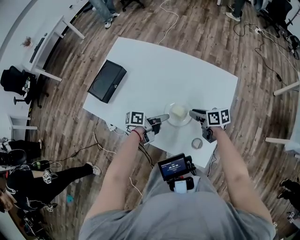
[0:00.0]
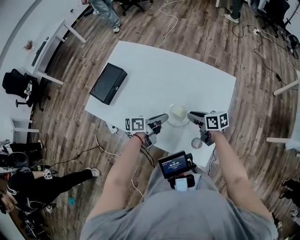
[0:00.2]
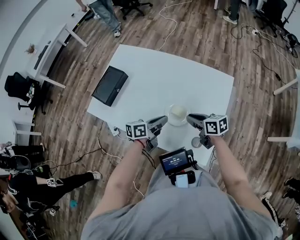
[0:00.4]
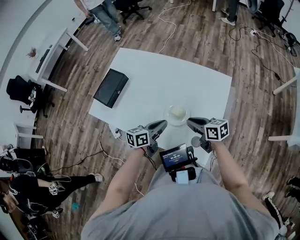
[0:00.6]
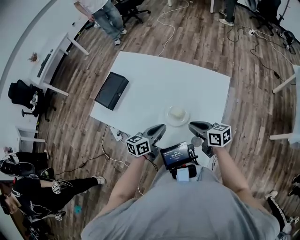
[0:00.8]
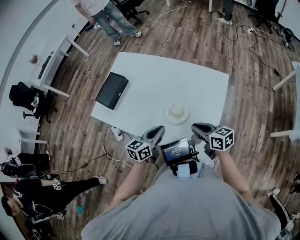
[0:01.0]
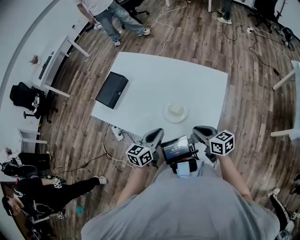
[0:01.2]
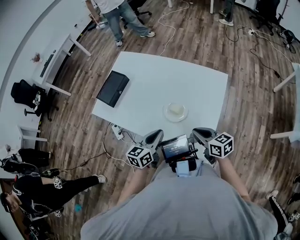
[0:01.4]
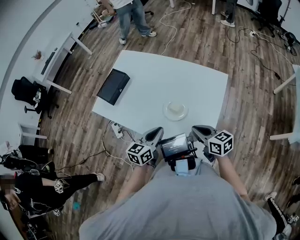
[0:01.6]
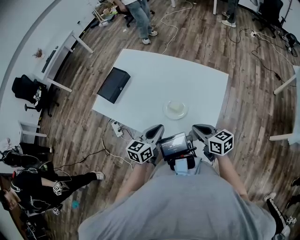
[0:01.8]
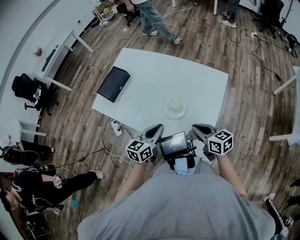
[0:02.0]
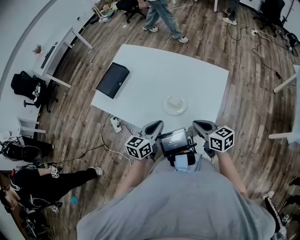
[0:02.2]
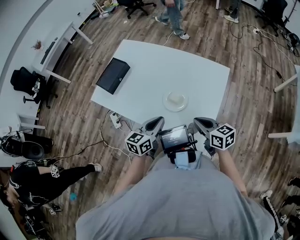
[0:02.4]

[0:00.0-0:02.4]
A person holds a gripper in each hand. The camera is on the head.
0:00.0 to 0:01.2: The right gripper shifts by roughly 15 cm, and swivels about 20 degrees.

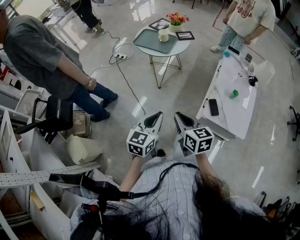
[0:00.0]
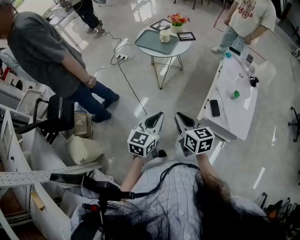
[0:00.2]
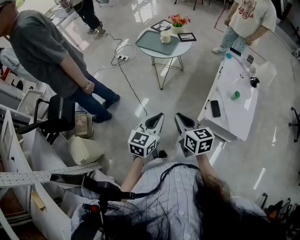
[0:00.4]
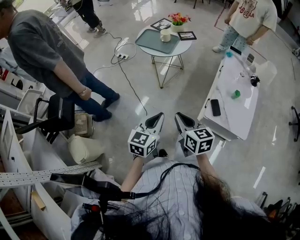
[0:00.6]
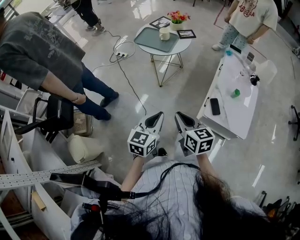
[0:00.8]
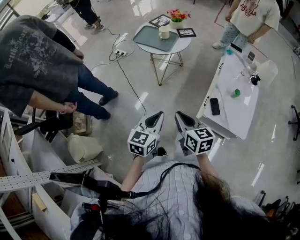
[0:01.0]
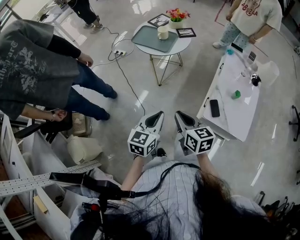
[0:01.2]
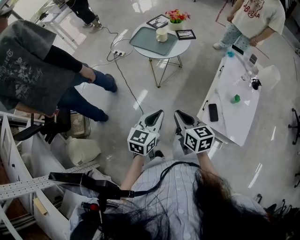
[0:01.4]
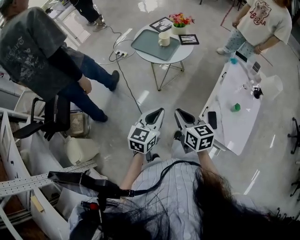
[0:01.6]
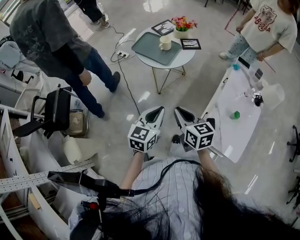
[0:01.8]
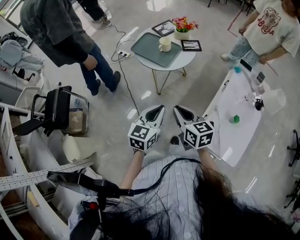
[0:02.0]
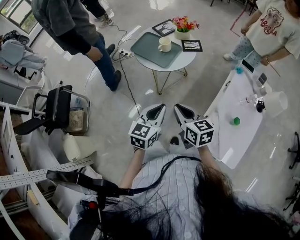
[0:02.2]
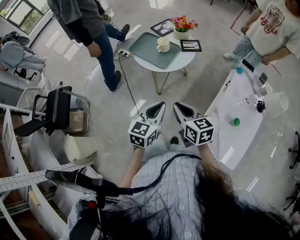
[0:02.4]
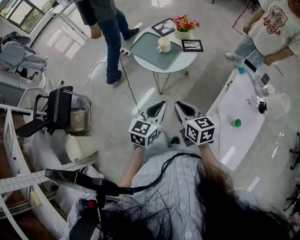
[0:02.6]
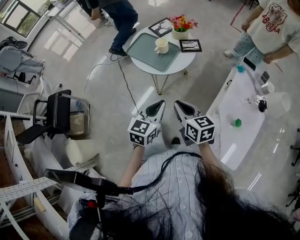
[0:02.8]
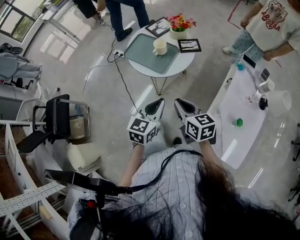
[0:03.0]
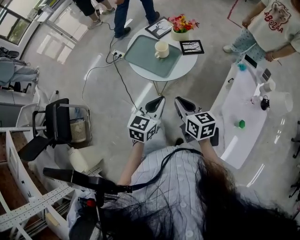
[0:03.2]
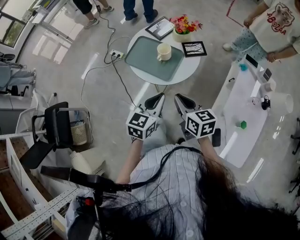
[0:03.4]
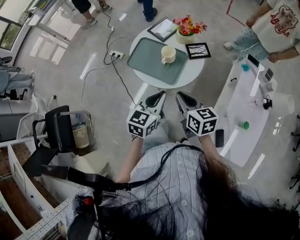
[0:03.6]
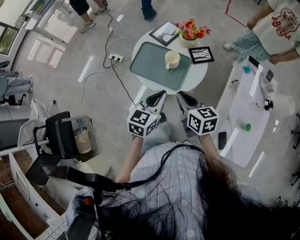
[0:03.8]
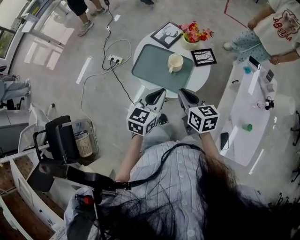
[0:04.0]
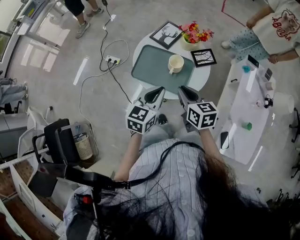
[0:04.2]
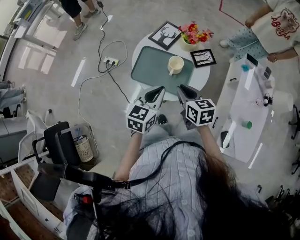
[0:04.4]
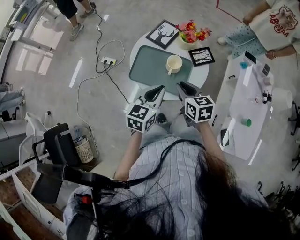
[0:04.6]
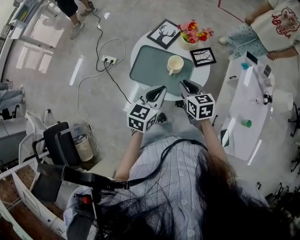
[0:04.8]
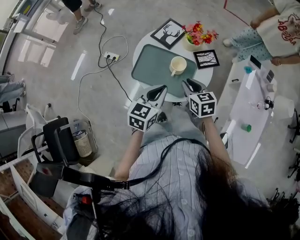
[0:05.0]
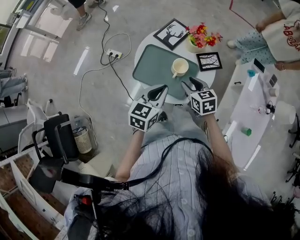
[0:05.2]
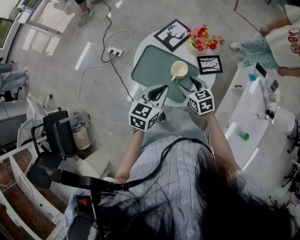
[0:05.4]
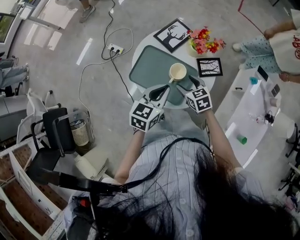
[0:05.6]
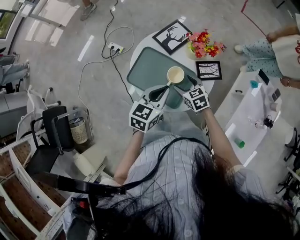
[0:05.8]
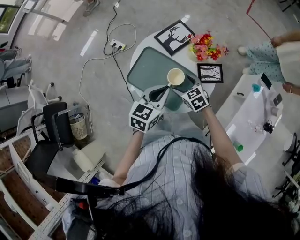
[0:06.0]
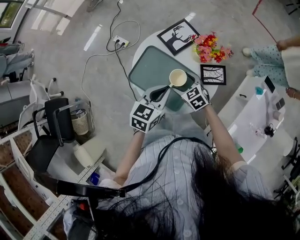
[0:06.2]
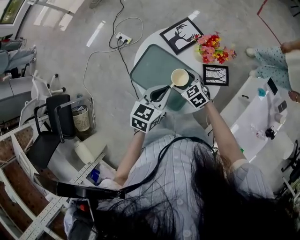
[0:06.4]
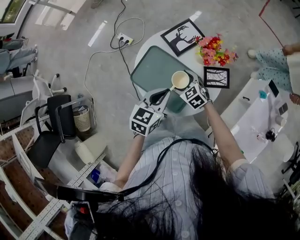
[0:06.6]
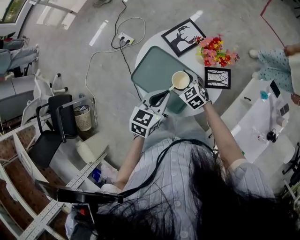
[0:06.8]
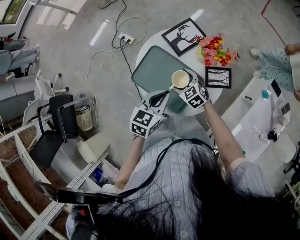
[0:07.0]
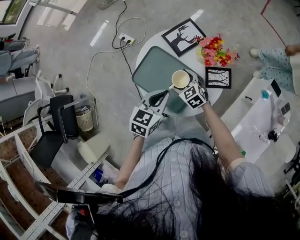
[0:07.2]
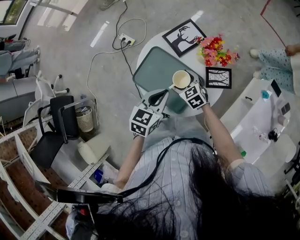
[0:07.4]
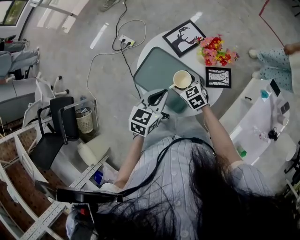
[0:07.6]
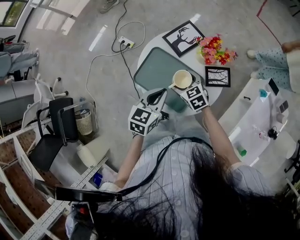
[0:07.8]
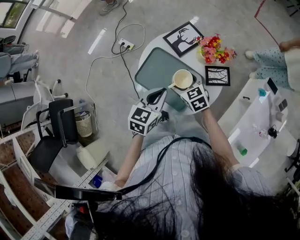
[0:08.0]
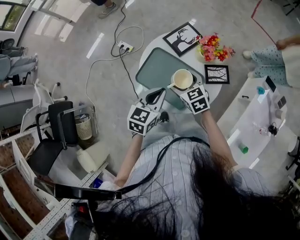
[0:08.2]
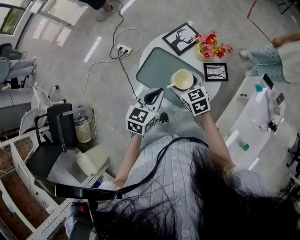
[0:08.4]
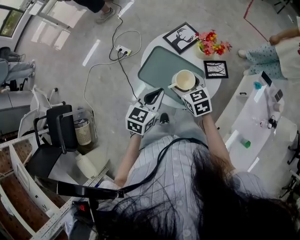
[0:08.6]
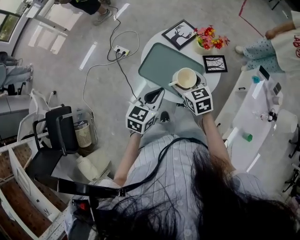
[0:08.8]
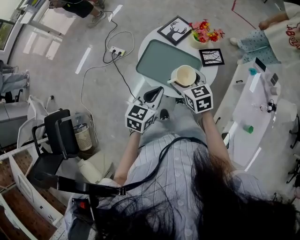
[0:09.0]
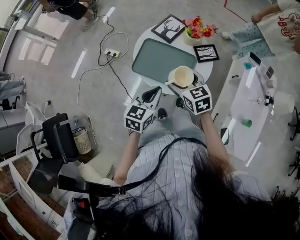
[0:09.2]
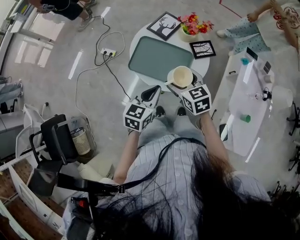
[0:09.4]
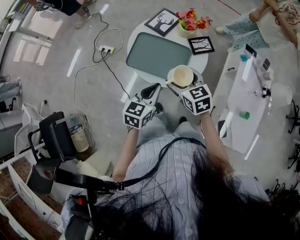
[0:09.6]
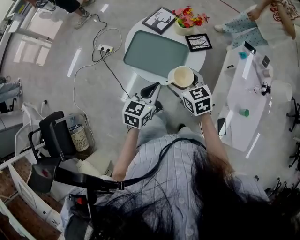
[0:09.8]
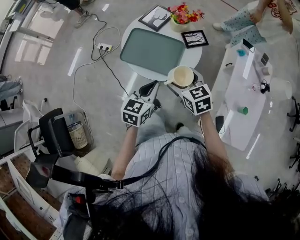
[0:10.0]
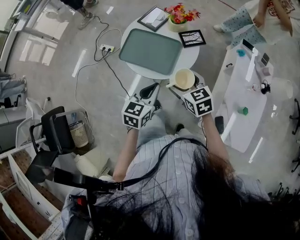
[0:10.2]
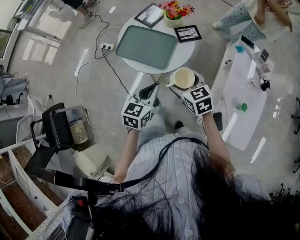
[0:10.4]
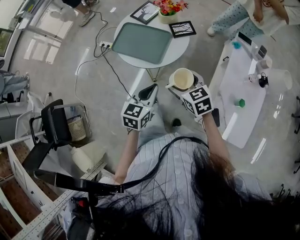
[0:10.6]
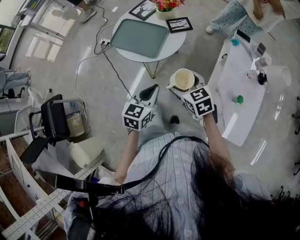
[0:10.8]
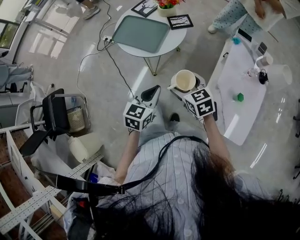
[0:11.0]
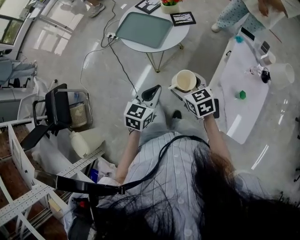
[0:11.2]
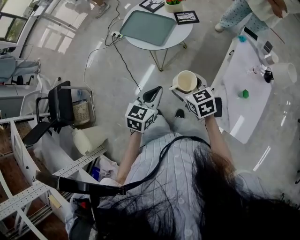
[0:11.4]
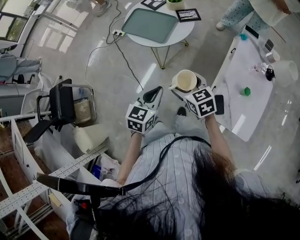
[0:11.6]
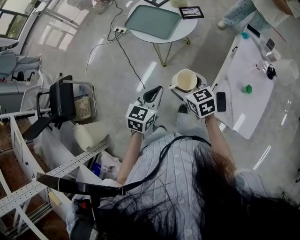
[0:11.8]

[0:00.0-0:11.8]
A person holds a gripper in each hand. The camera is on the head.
0:00.0 to 0:01.4: Both grippers move forward, about 10 cm.
0:01.4 to 0:03.0: Both grippers travel together forward, approximately 25 cm.
0:03.0 to 0:04.4: The grippers both shift forward and to the left by about 25 cm.
0:04.4 to 0:06.0: The left gripper shifts some 10 cm forward and to the right. The right gripper heads downward and forward, covering roughly 20 cm, swivels approximately 40 degrees, and opens its fingers.
0:06.0 to 0:07.4: The right gripper changes place by about 5 cm.
0:07.4 to 0:08.8: The right gripper shifts about 15 cm upward and backward, and rotates some 20 degrees. The left gripper heads backward and to the left, covering roughly 10 cm.
0:08.8 to 0:10.4: The two grippers go about 20 cm backward and to the right.
0:10.4 to 0:11.8: Both grippers move backward, roughly 20 cm.

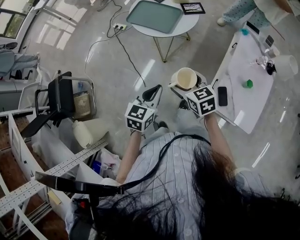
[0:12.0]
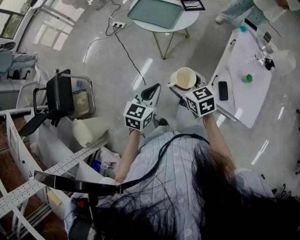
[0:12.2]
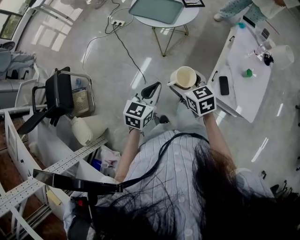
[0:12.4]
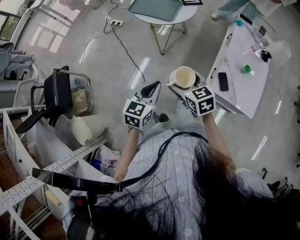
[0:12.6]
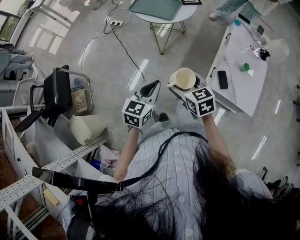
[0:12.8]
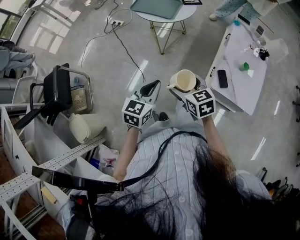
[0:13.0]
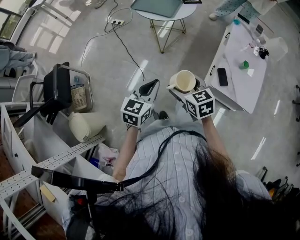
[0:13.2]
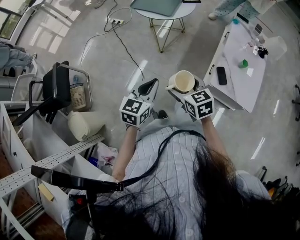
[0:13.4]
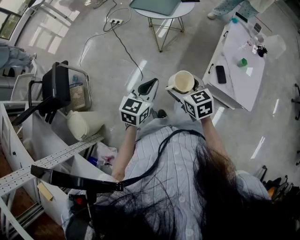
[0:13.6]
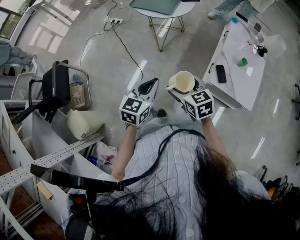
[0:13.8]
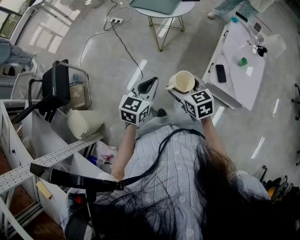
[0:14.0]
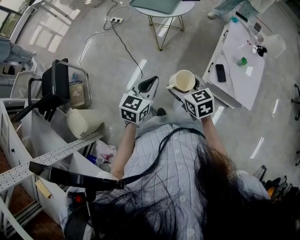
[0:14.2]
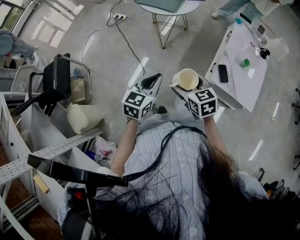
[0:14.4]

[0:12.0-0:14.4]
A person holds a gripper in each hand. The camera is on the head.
0:12.0 to 0:13.2: The left gripper shifts some 15 cm backward and to the left. Meanwhile the right gripper heads backward, covering about 15 cm.
0:13.2 to 0:14.4: The grippers stay close to where they were, moving slightly.

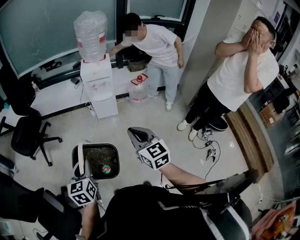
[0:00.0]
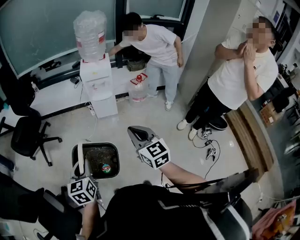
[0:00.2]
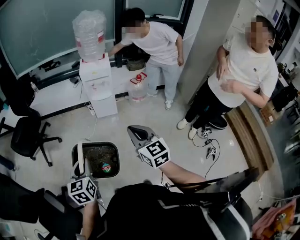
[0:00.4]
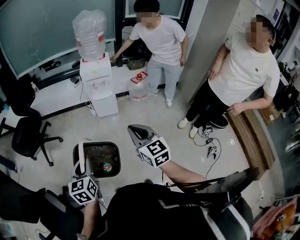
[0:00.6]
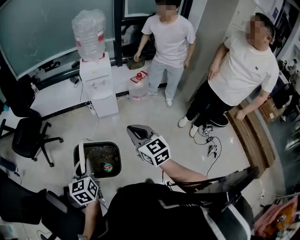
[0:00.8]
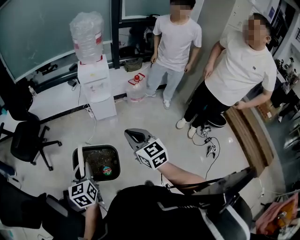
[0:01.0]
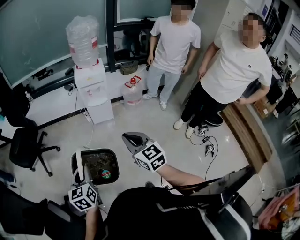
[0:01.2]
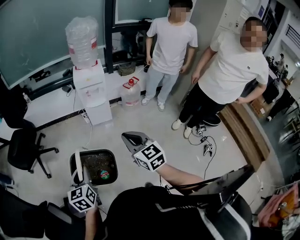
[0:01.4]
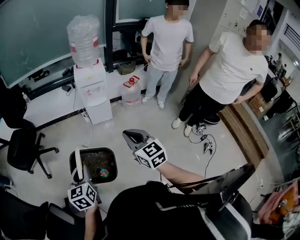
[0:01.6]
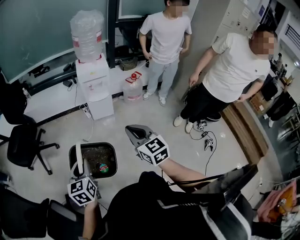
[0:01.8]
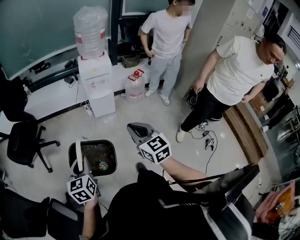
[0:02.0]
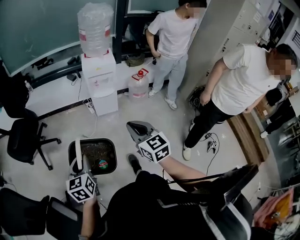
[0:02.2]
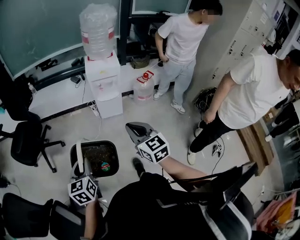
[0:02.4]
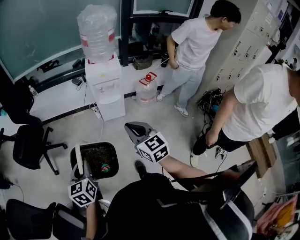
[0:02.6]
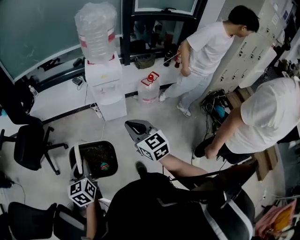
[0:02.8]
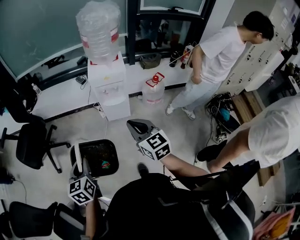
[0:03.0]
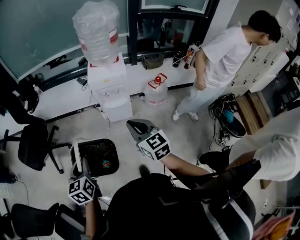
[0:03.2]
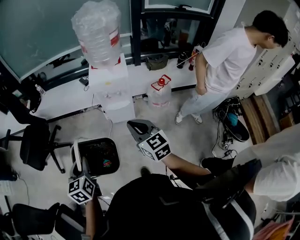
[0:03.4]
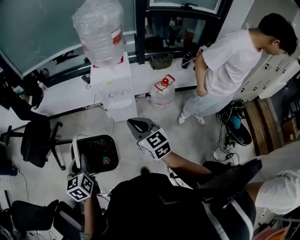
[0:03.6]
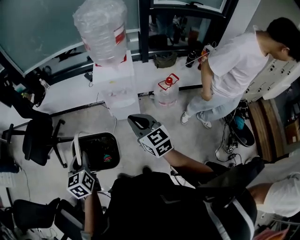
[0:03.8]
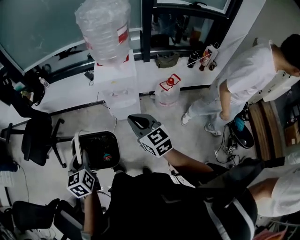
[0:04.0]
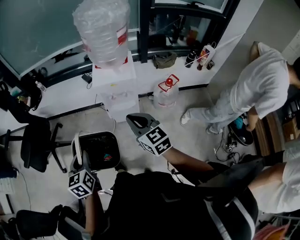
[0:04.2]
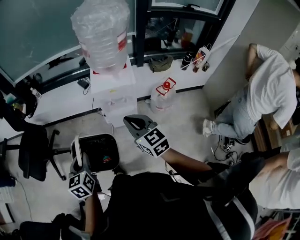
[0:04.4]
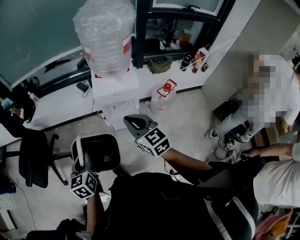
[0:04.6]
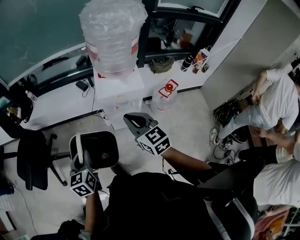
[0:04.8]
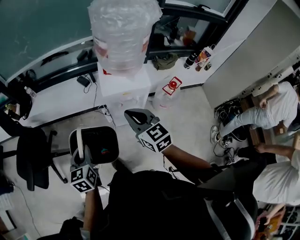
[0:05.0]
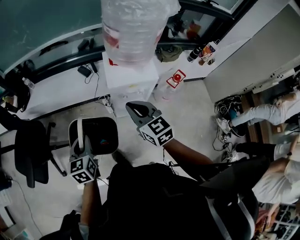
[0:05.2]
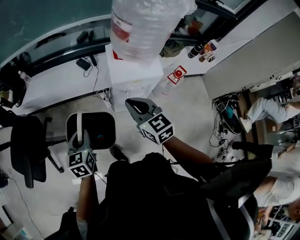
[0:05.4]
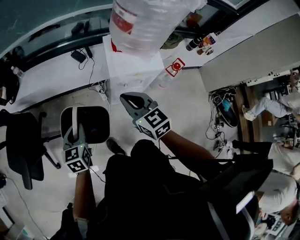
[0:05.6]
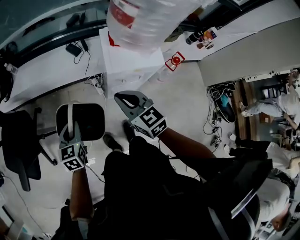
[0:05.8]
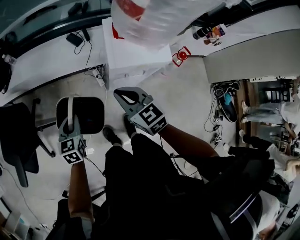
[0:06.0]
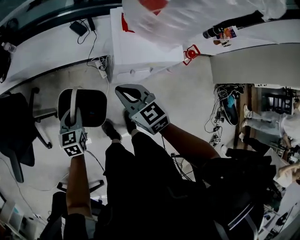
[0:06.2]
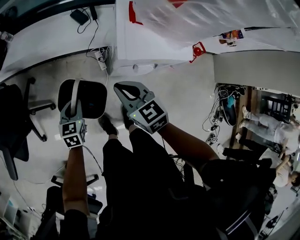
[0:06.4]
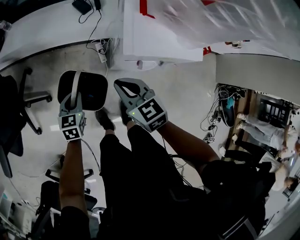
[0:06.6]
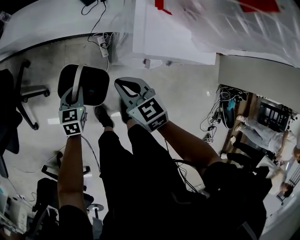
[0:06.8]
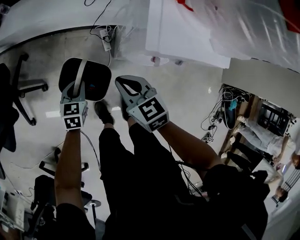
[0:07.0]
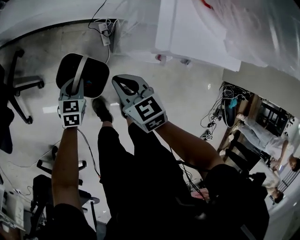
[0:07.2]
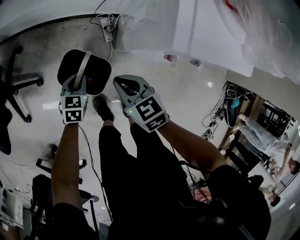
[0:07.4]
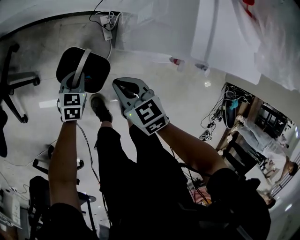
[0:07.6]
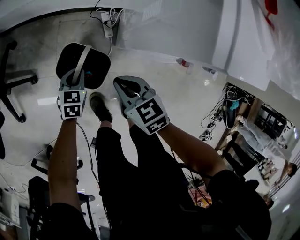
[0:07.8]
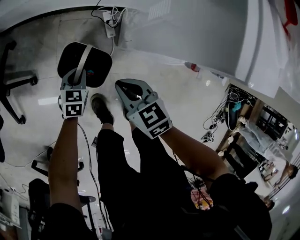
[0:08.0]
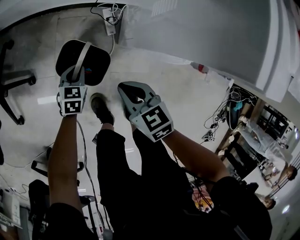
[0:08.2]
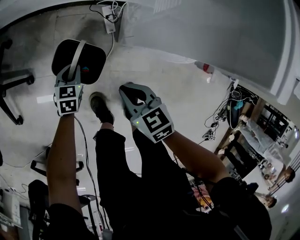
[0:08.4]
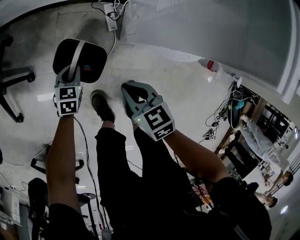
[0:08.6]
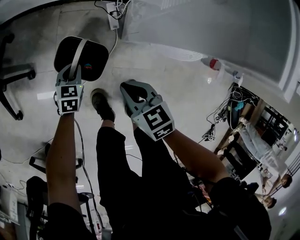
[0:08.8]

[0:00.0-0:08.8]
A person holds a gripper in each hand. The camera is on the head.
0:00.0 to 0:01.4: The right gripper is displaced to the left by about 5 cm. The left gripper shifts by approximately 5 cm.
0:01.4 to 0:03.0: Both grippers travel together forward, roughly 25 cm.
0:03.0 to 0:04.4: Both grippers move forward, about 20 cm.
0:04.4 to 0:05.8: The left gripper heads forward, downward and to the left, covering roughly 30 cm; the right gripper heads forward, to the left and downward, covering approximately 25 cm.
0:05.8 to 0:07.4: Both grippers move downward, some 35 cm. The right gripper turns by approximately 20 degrees.
0:07.4 to 0:08.8: Both grippers travel together downward, approximately 15 cm.
